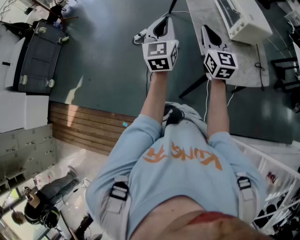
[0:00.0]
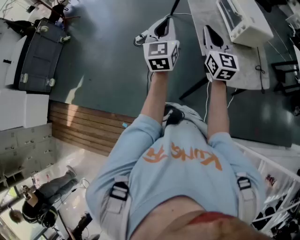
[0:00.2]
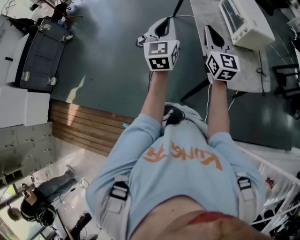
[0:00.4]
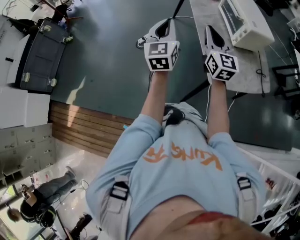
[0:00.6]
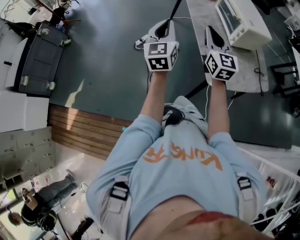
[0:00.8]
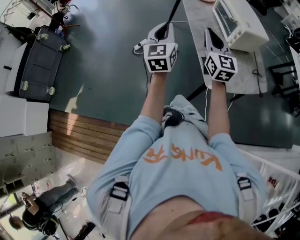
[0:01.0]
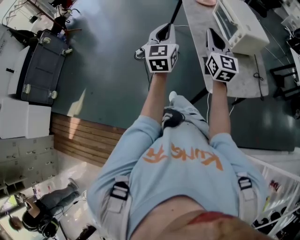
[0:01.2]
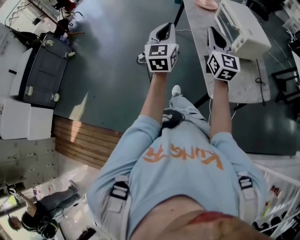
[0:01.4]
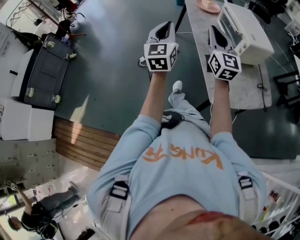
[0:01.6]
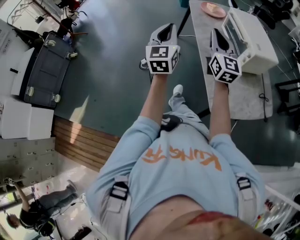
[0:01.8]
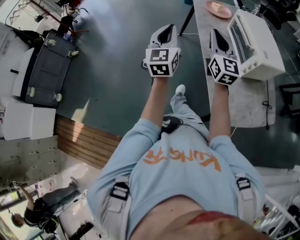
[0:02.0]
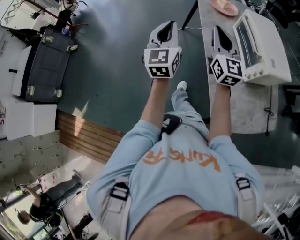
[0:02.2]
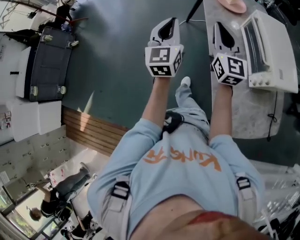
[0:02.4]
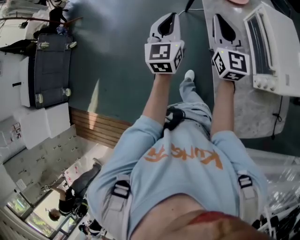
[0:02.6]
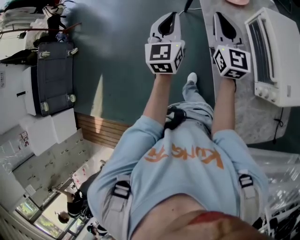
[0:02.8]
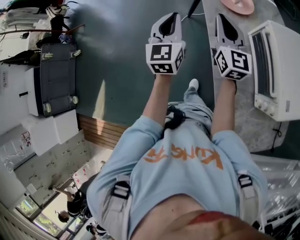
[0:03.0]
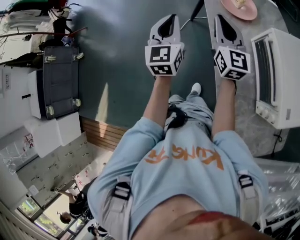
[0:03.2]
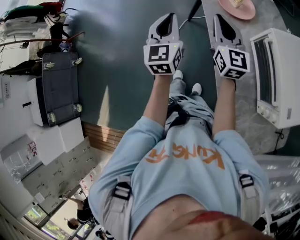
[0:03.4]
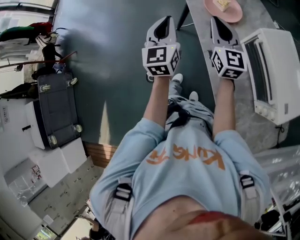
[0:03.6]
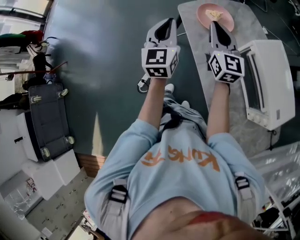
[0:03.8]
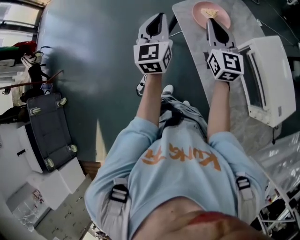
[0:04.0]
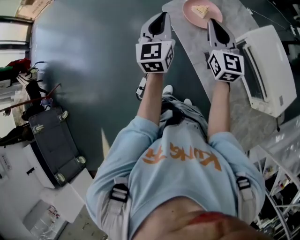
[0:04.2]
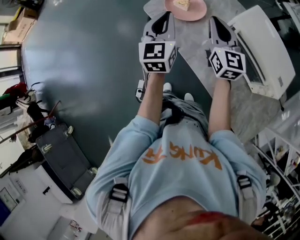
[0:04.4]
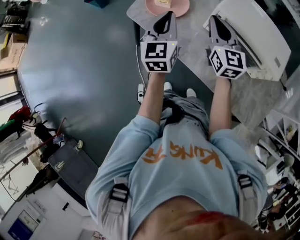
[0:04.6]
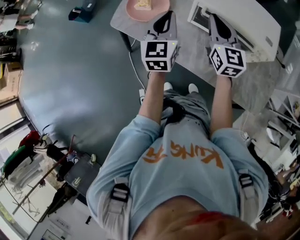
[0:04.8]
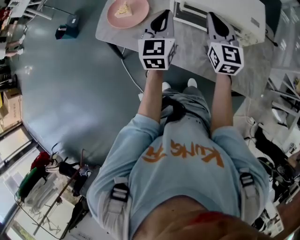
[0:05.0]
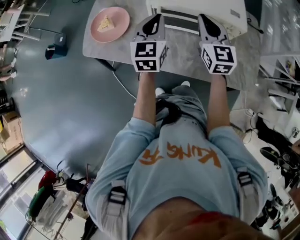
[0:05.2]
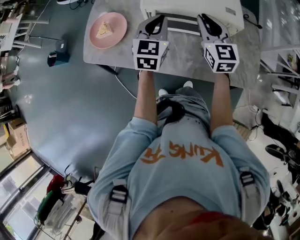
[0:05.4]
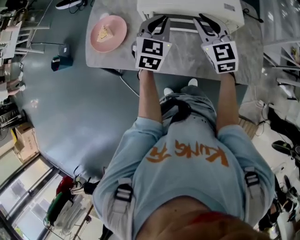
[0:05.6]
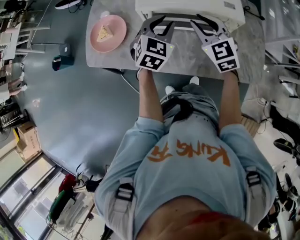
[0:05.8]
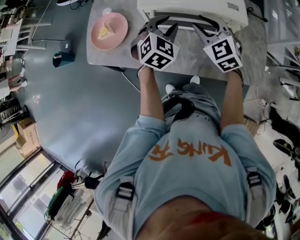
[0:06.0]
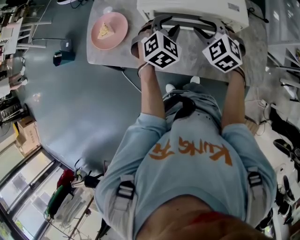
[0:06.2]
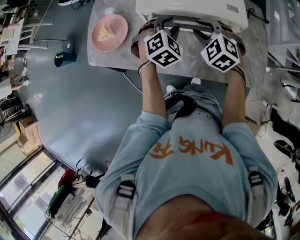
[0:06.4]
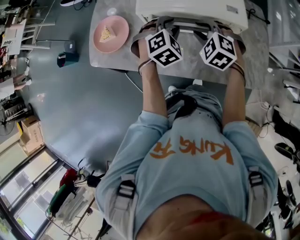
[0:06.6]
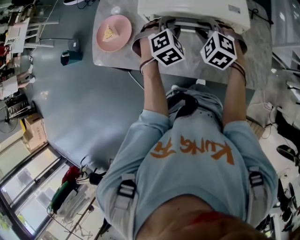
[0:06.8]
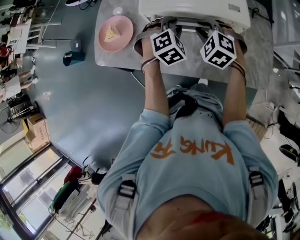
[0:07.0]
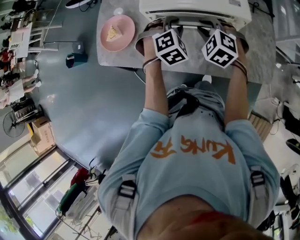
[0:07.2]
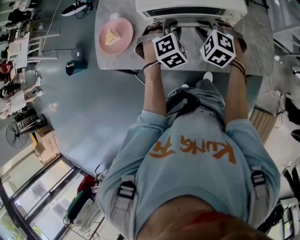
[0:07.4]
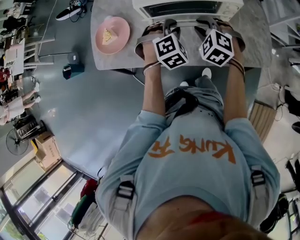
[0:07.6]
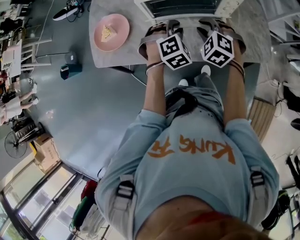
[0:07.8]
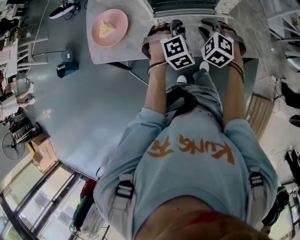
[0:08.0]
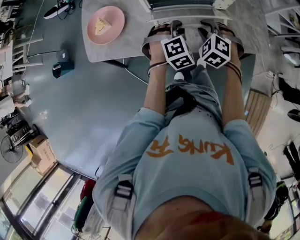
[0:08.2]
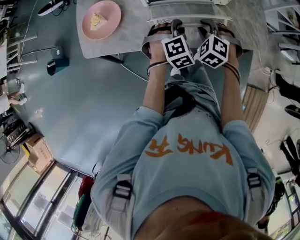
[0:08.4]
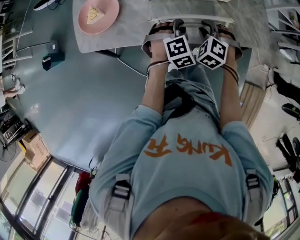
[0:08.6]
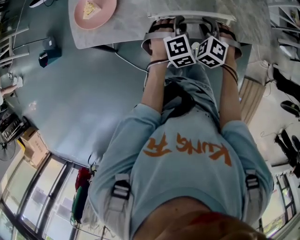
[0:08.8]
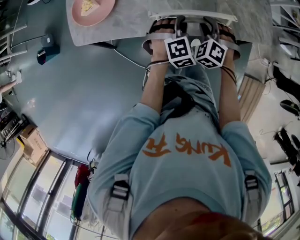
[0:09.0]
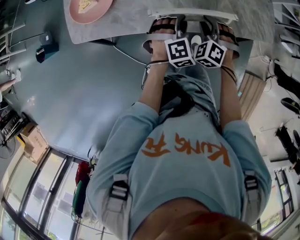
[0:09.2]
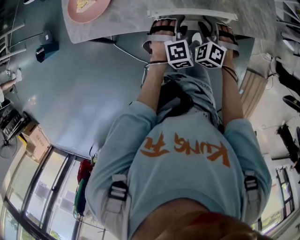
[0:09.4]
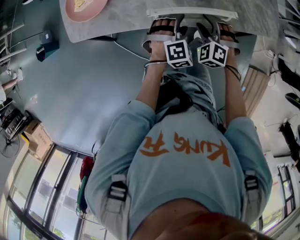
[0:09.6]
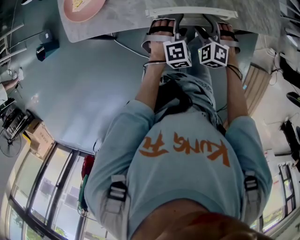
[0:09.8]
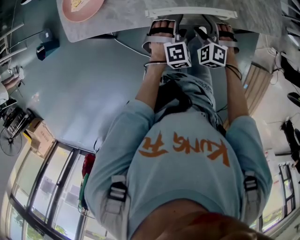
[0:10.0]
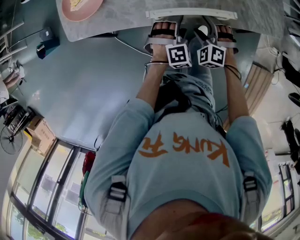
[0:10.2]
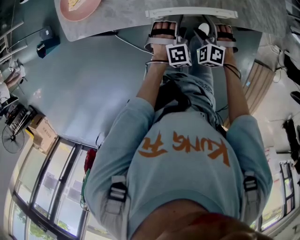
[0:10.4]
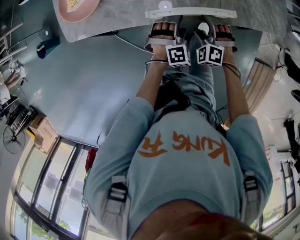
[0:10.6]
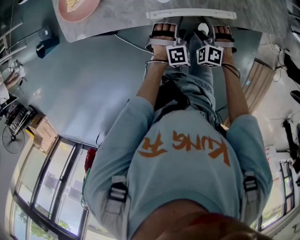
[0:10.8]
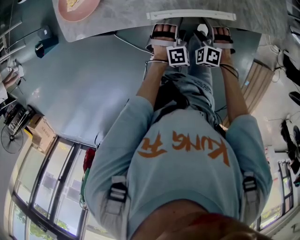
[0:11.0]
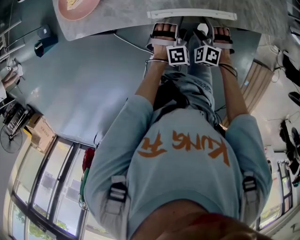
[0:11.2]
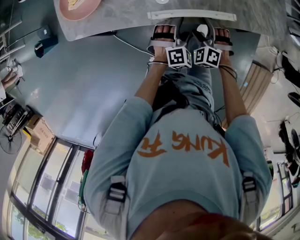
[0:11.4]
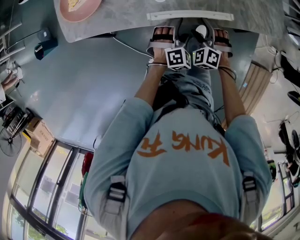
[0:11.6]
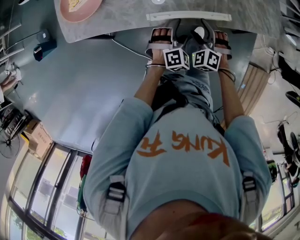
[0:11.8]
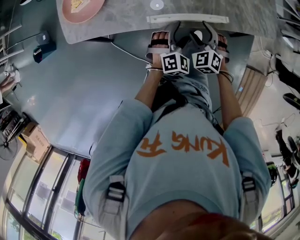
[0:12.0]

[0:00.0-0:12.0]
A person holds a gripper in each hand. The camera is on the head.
0:00.0 to 0:01.6: The right gripper moves forward and upward, some 10 cm; the left gripper travels forward by about 10 cm.
0:01.6 to 0:03.0: The two grippers travel together, forward, some 50 cm.
0:03.0 to 0:04.4: The right gripper changes place by about 15 cm, and swivels approximately 30 degrees. The left gripper shifts by approximately 25 cm, and changes its angle by roughly 30 degrees.
0:04.4 to 0:06.0: The left gripper changes place by some 35 cm, and angles its fingers downward, by approximately 30 degrees. The right gripper changes place by some 30 cm, and rotates some 40 degrees.
0:06.0 to 0:07.6: Both grippers travel together downward, approximately 5 cm. The right gripper changes its angle by approximately 20 degrees. The left gripper swivels about 30 degrees.
0:07.6 to 0:09.0: The two grippers go about 15 cm downward and backward.
0:09.0 to 0:10.4: Both grippers travel together downward and backward, roughly 15 cm. The right gripper opens its fingers, while the left gripper opens.
0:10.4 to 0:12.0: The left gripper turns by roughly 20 degrees; the right gripper turns by approximately 20 degrees.

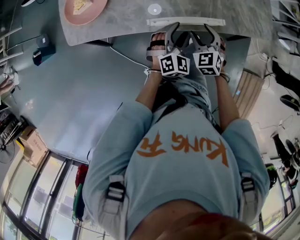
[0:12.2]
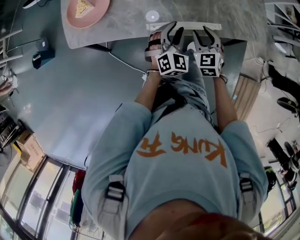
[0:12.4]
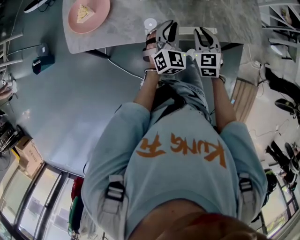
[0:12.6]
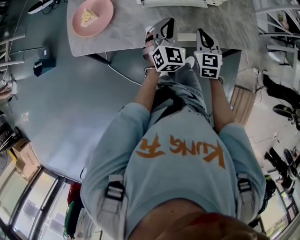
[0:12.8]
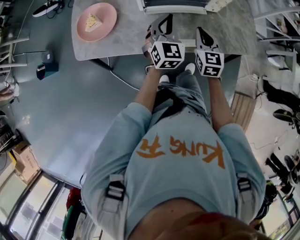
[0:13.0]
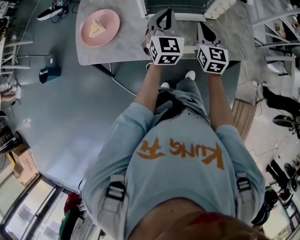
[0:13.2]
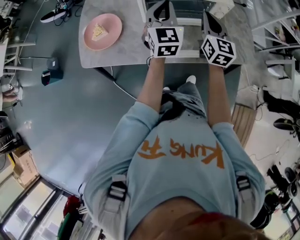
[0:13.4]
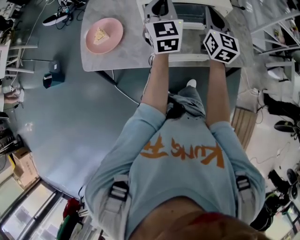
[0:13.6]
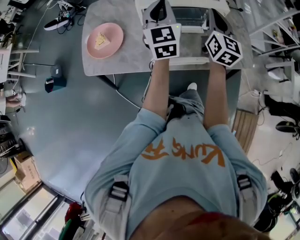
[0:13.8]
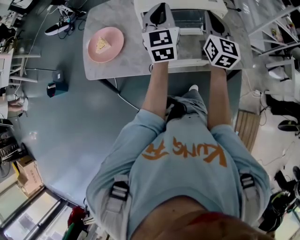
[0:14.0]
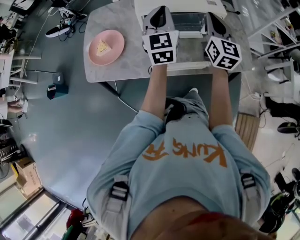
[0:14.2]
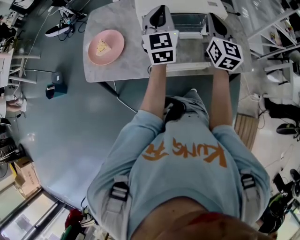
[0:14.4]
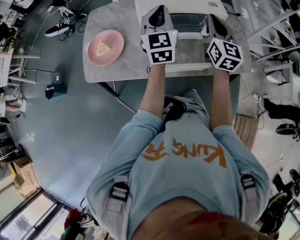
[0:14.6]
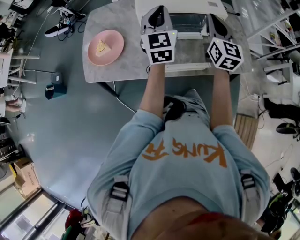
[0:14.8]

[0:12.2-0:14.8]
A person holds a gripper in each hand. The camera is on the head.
0:12.2 to 0:13.4: Both grippers move upward and forward, some 30 cm. The left gripper swivels about 40 degrees, and closes its fingers. Meanwhile the right gripper tilts its fingers some 30 degrees upward, and closes.
0:13.4 to 0:14.8: The two grippers go about 5 cm upward.

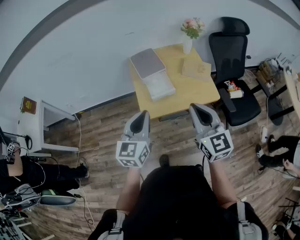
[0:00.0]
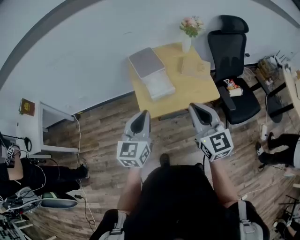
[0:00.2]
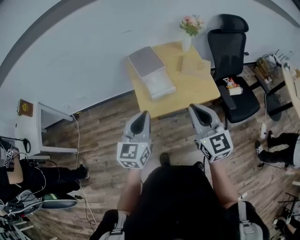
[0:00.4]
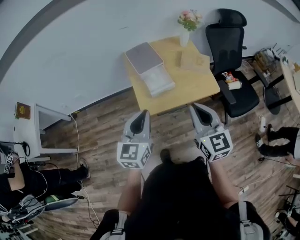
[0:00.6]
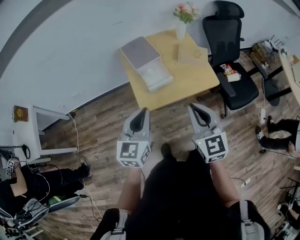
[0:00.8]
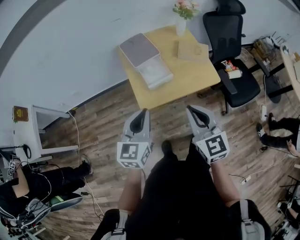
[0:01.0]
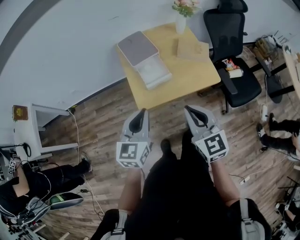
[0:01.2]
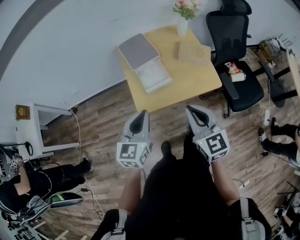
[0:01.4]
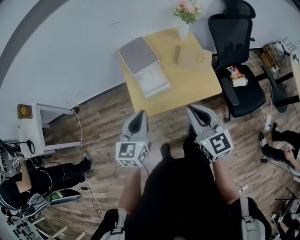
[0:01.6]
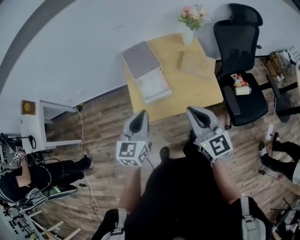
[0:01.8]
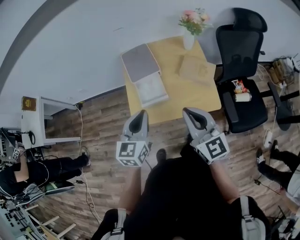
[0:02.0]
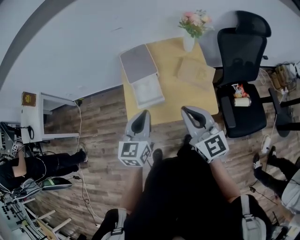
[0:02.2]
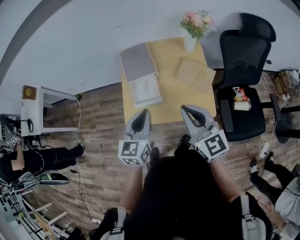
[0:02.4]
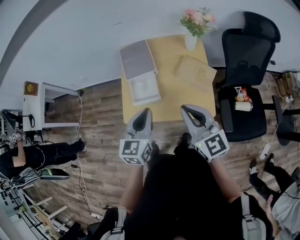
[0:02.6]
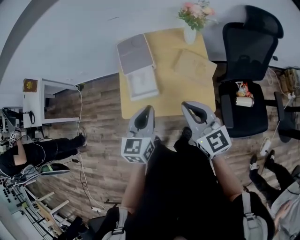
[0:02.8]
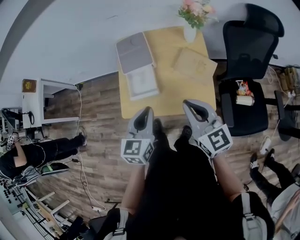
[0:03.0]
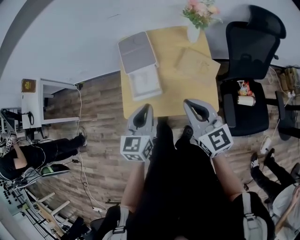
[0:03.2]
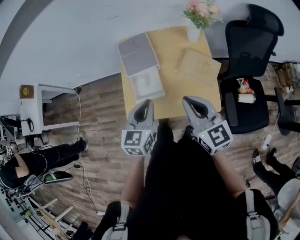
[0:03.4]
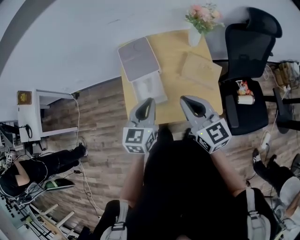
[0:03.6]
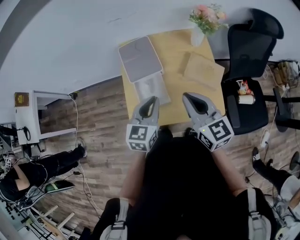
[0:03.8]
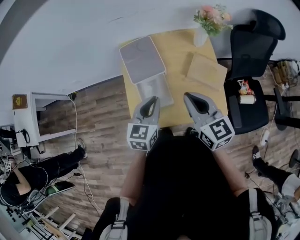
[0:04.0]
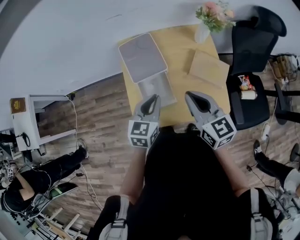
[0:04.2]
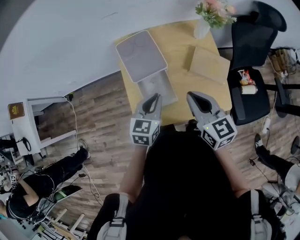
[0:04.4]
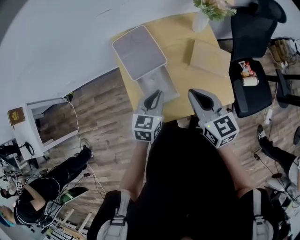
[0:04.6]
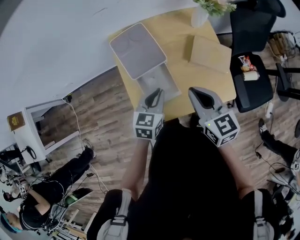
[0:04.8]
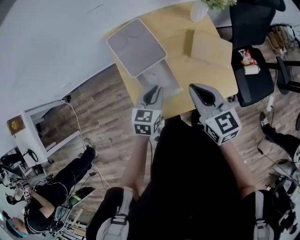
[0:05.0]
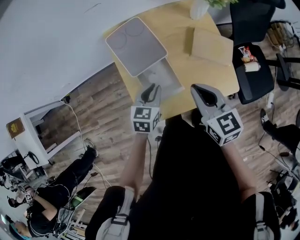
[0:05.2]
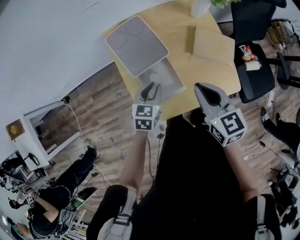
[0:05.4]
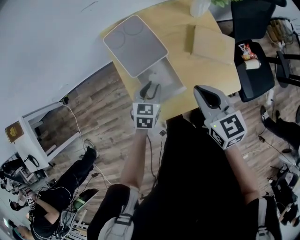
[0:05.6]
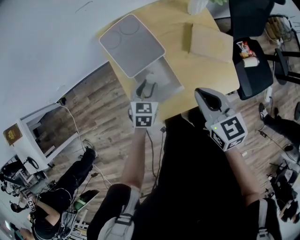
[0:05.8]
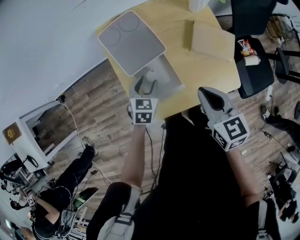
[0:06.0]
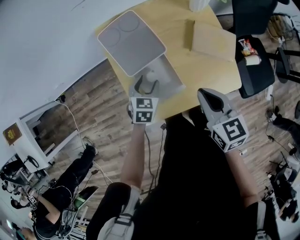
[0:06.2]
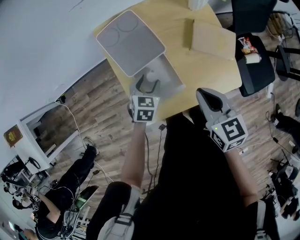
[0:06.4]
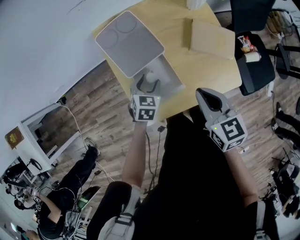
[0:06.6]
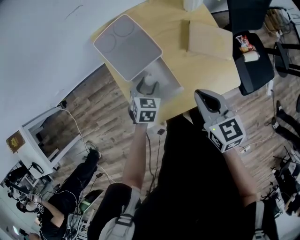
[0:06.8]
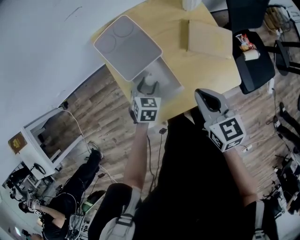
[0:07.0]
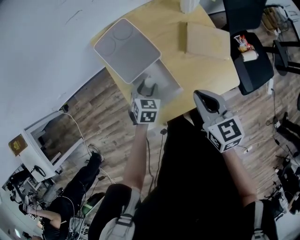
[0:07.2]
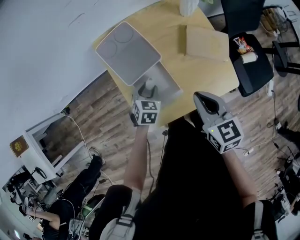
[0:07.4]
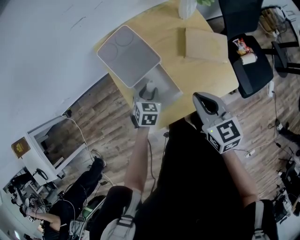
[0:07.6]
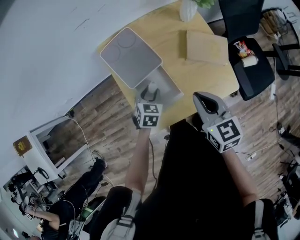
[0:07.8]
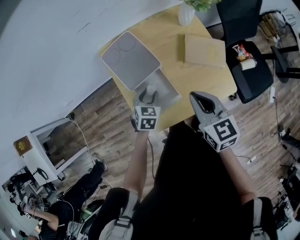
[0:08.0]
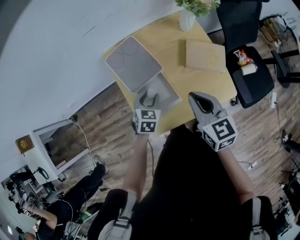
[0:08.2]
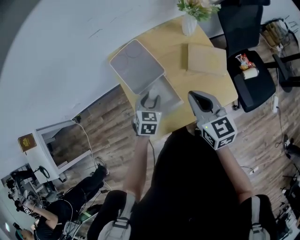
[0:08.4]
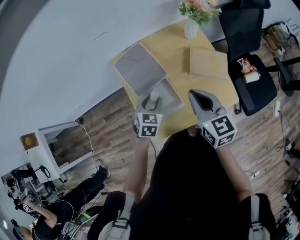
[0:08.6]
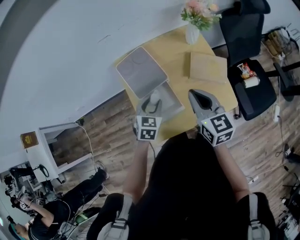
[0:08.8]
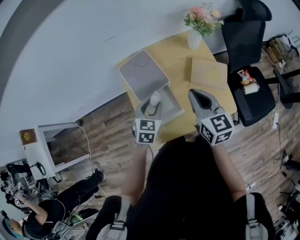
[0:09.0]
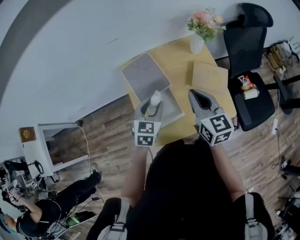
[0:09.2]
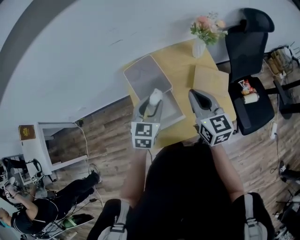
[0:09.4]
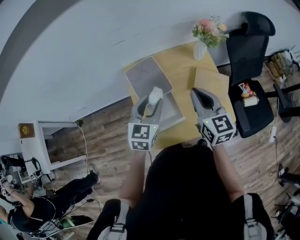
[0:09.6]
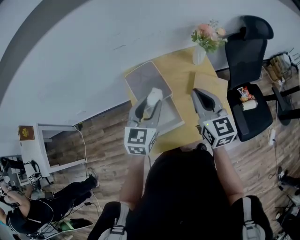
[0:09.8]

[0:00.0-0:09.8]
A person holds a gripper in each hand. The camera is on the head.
0:00.0 to 0:01.4: The right gripper heads downward, covering approximately 10 cm, while the left gripper shifts some 10 cm downward and forward.
0:01.4 to 0:02.8: The two grippers go some 25 cm to the right and forward. The right gripper changes its angle by roughly 20 degrees.
0:02.8 to 0:04.2: The left gripper moves forward, to the left and downward, about 20 cm. Meanwhile the right gripper is displaced forward and to the left by approximately 15 cm.
0:04.2 to 0:05.6: The left gripper heads downward, covering about 15 cm, and opens its fingers. Meanwhile the right gripper shifts approximately 5 cm downward.
0:05.6 to 0:07.0: The left gripper moves downward, about 5 cm, and opens up.
0:07.0 to 0:08.4: The two grippers go approximately 5 cm upward.
0:08.4 to 0:09.8: The left gripper goes roughly 20 cm upward, and swivels some 30 degrees. The right gripper shifts about 10 cm upward and forward.
